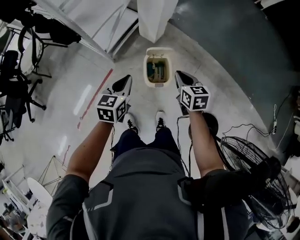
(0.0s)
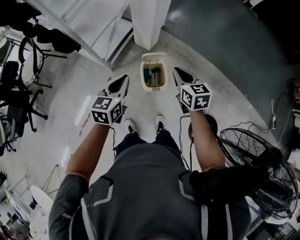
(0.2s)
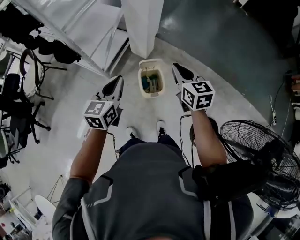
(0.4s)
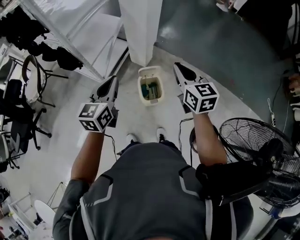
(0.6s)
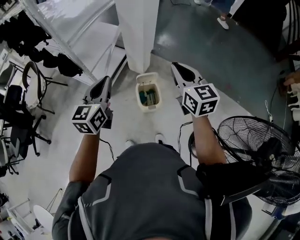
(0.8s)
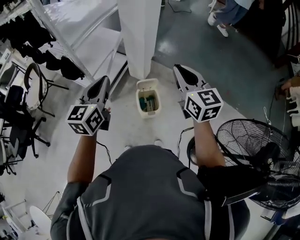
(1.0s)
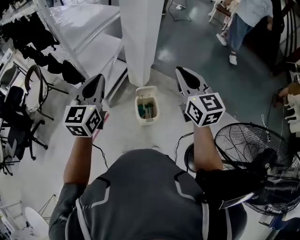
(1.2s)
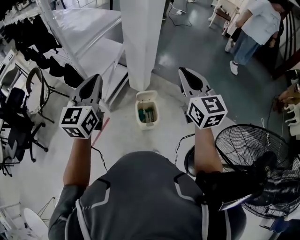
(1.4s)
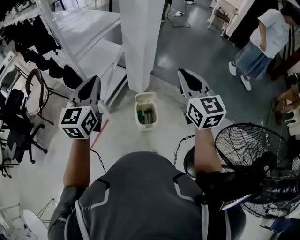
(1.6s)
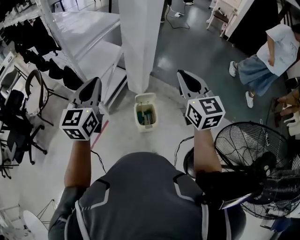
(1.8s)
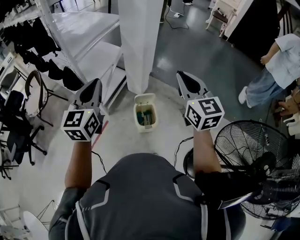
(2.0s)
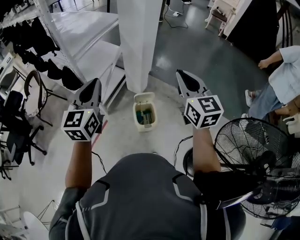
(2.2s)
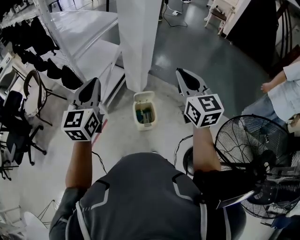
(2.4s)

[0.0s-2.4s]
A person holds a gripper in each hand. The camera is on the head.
0.0s to 1.2s: The two grippers go some 35 cm upward. The right gripper points its fingers roughly 30 degrees further upward, while the left gripper swivels approximately 30 degrees.
1.2s to 2.4s: There are only small adjustments of the grippers.

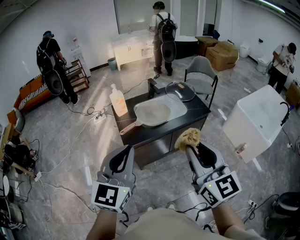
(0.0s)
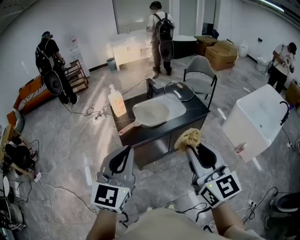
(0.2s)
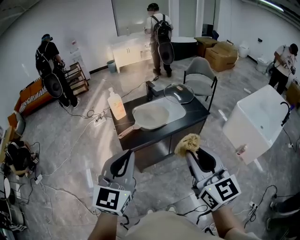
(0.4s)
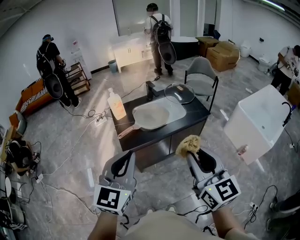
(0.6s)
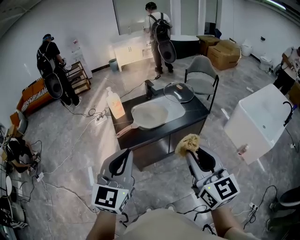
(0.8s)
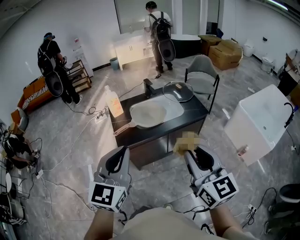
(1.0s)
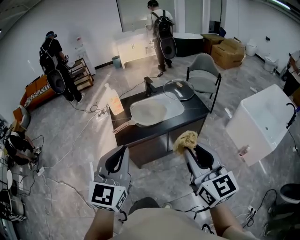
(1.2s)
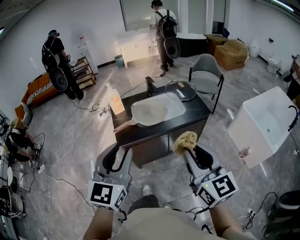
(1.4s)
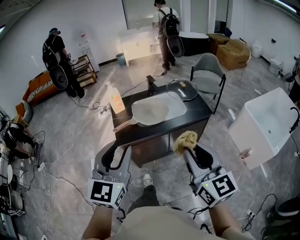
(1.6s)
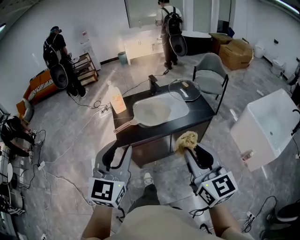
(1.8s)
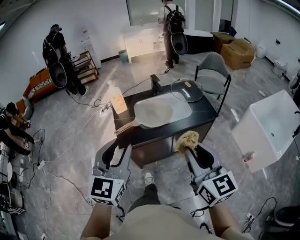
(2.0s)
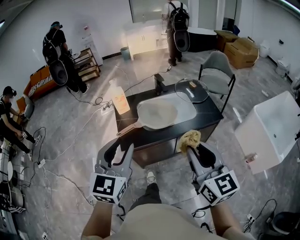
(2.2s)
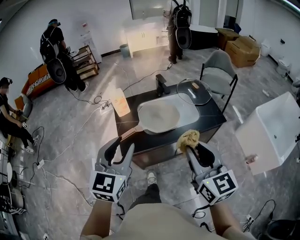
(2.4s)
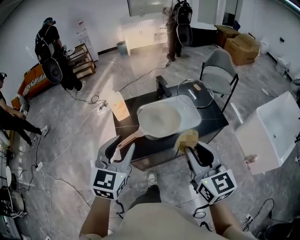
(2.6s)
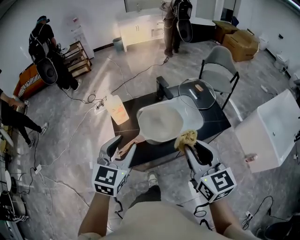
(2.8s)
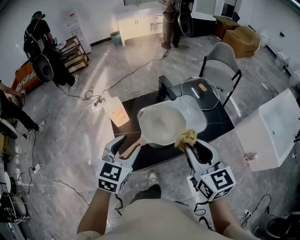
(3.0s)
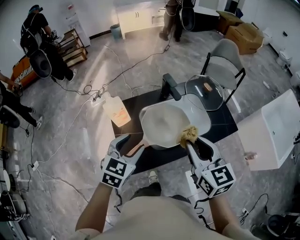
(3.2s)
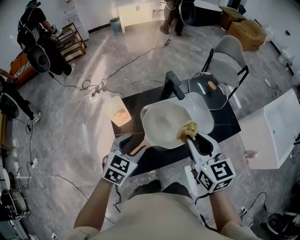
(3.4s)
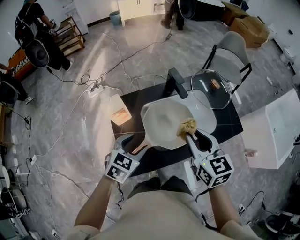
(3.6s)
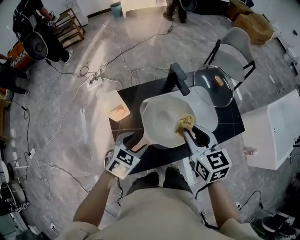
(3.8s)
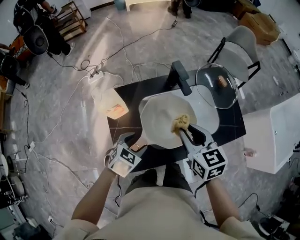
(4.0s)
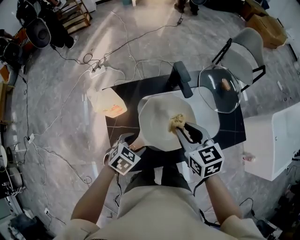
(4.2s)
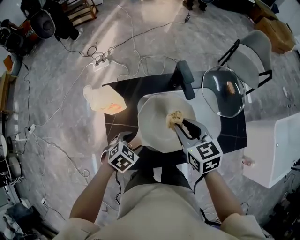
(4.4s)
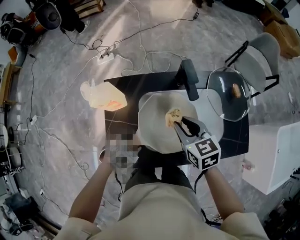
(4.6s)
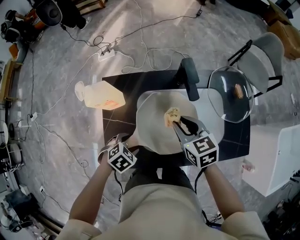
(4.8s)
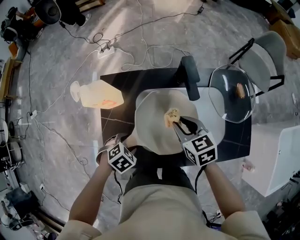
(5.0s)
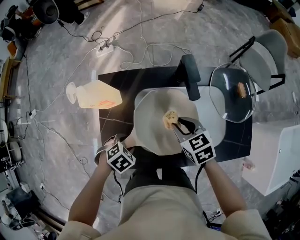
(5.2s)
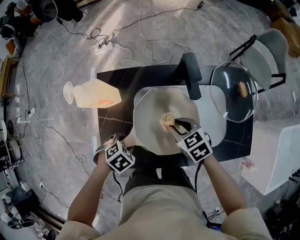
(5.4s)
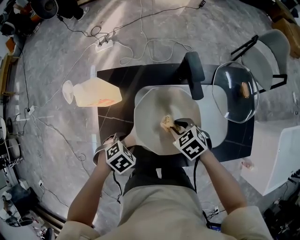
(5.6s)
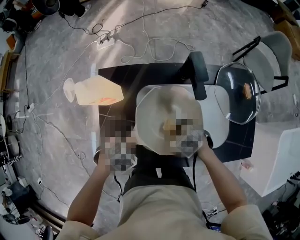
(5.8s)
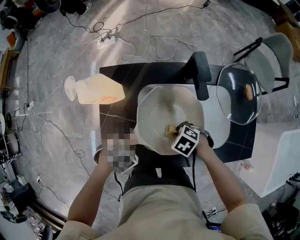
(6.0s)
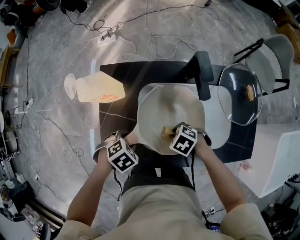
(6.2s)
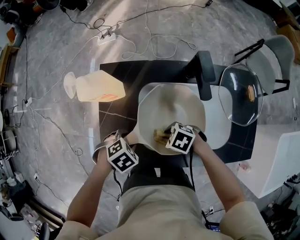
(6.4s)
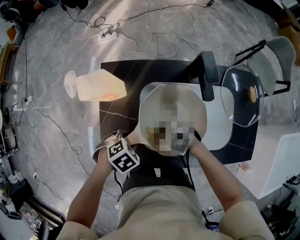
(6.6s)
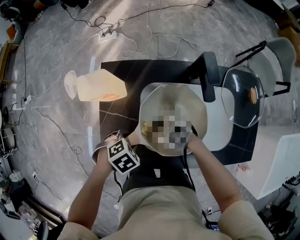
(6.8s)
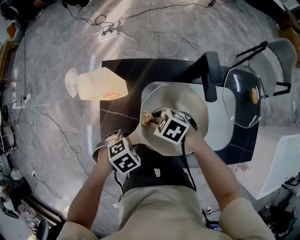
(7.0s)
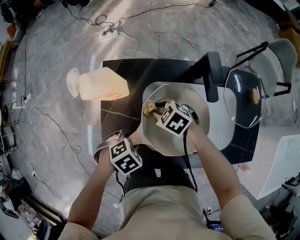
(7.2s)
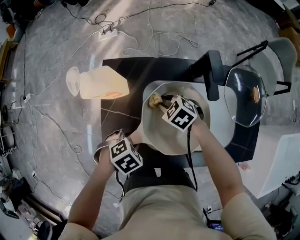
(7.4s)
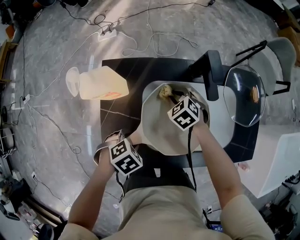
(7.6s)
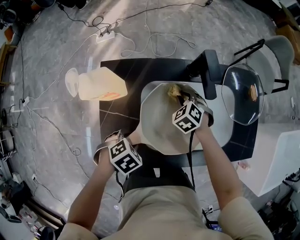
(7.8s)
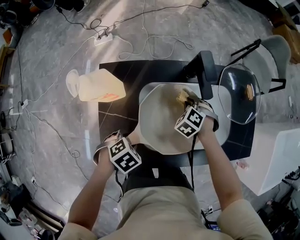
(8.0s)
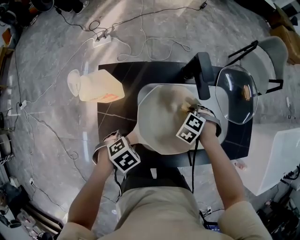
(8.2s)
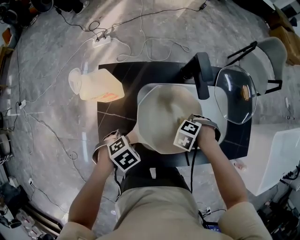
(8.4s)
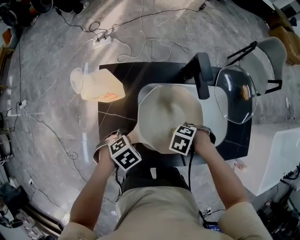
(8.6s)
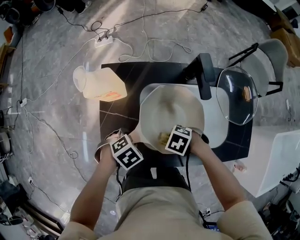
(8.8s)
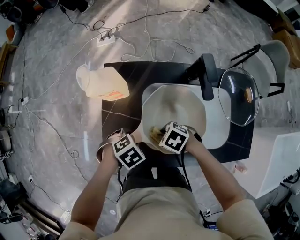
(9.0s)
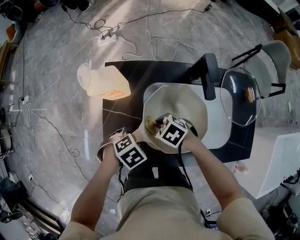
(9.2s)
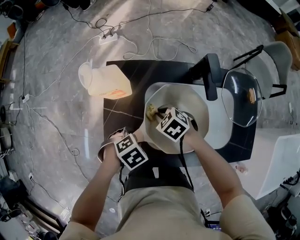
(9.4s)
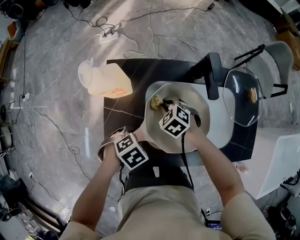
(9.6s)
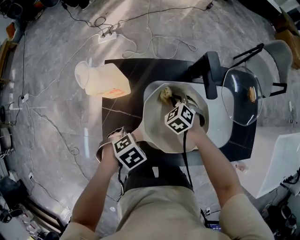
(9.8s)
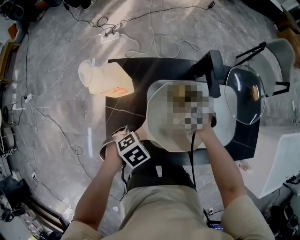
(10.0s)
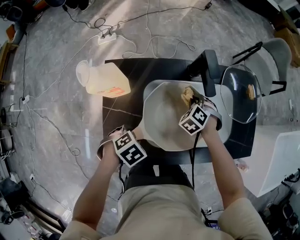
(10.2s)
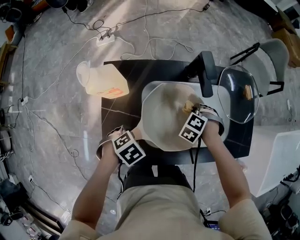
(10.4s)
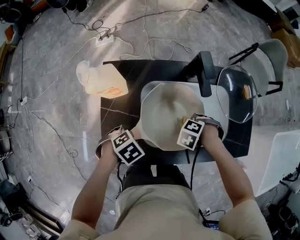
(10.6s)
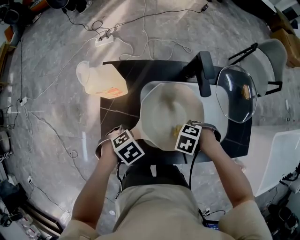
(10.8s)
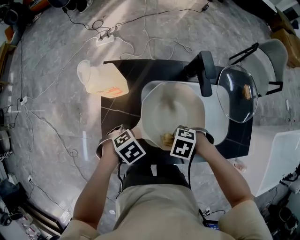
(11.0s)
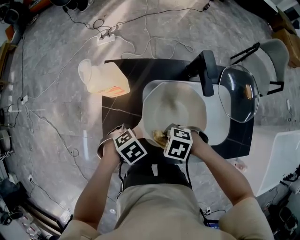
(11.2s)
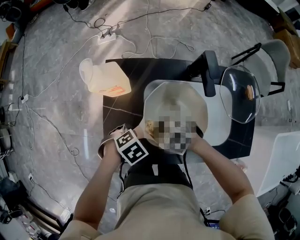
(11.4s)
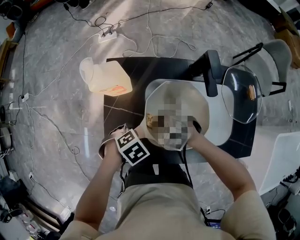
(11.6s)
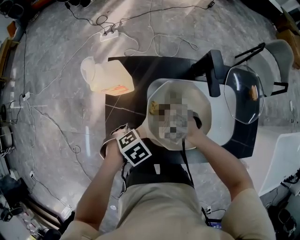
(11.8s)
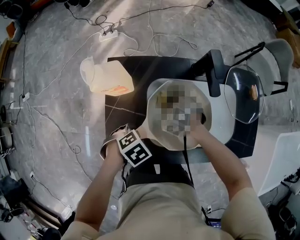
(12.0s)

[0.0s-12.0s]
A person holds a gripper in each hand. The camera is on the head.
0.0s to 1.6s: The left gripper heads to the right, covering approximately 5 cm, and opens. Meanwhile the right gripper moves to the right and downward, approximately 10 cm.
1.6s to 3.0s: The left gripper heads forward and downward, covering some 35 cm, and rotates approximately 30 degrees, while the right gripper goes roughly 30 cm forward.
3.0s to 4.4s: The left gripper heads downward, covering roughly 30 cm, and tips its fingers downward by approximately 40 degrees. The right gripper is displaced forward and downward by about 30 cm, and changes its angle by approximately 30 degrees.
4.4s to 6.0s: The right gripper heads downward, covering roughly 25 cm, and angles its fingers downward, by roughly 40 degrees. Meanwhile the left gripper heads downward, covering about 5 cm.
6.0s to 7.6s: The right gripper shifts by approximately 15 cm, and rotates some 30 degrees.
7.6s to 9.0s: The right gripper ends up about 20 cm from where it was, and swivels approximately 30 degrees.
9.0s to 10.4s: The right gripper moves some 20 cm, and turns by some 50 degrees.
10.4s to 12.0s: The right gripper ends up roughly 15 cm from where it was, and rotates approximately 20 degrees.

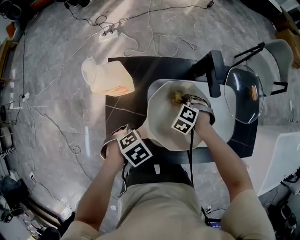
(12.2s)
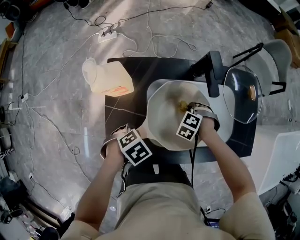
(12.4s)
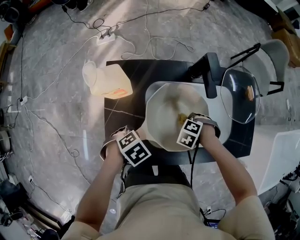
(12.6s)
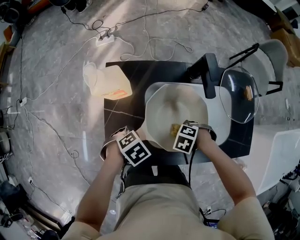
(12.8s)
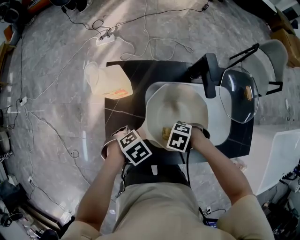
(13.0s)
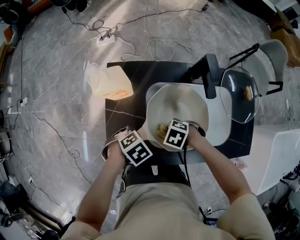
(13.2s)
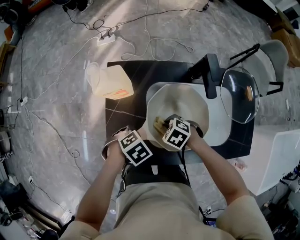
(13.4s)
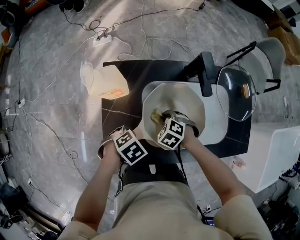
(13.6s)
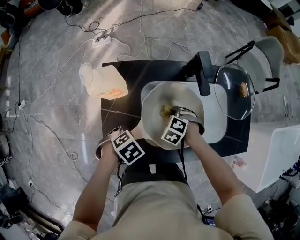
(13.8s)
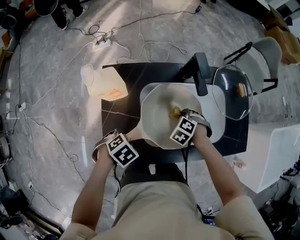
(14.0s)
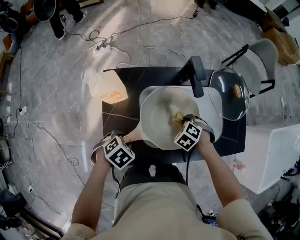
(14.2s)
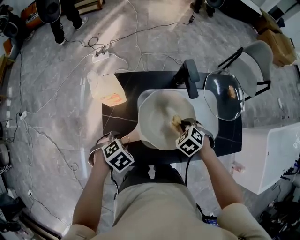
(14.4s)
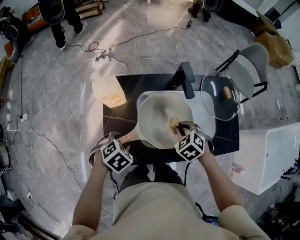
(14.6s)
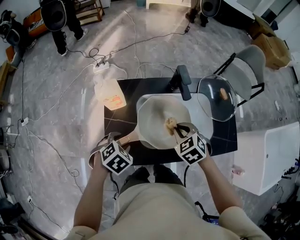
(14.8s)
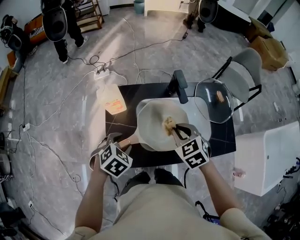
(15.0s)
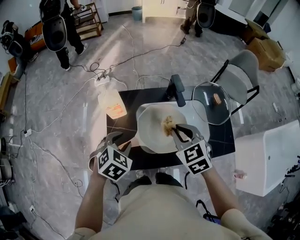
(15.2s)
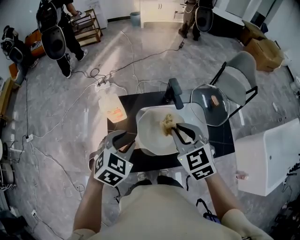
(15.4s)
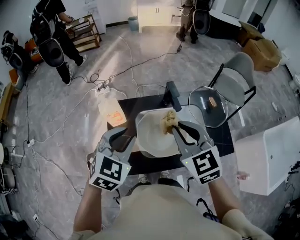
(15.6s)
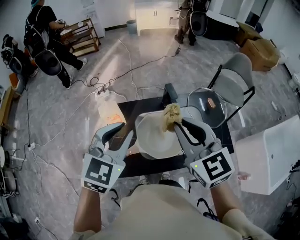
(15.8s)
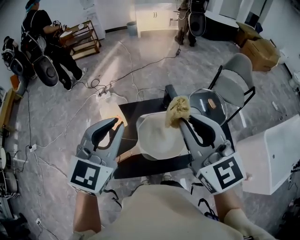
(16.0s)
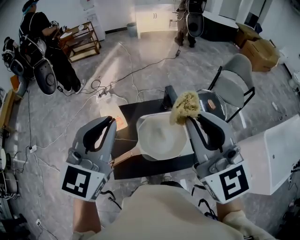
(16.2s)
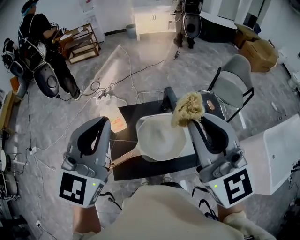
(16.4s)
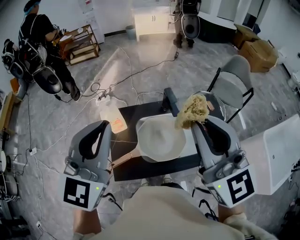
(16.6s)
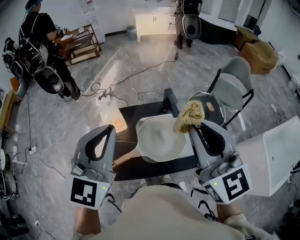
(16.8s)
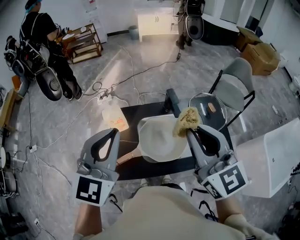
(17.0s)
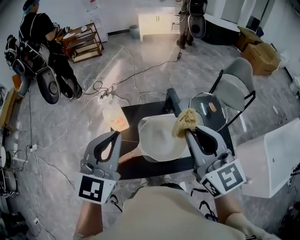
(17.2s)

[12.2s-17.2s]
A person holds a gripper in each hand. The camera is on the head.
13.8s to 15.6s: The two grippers go approximately 40 cm upward. The left gripper tips its fingers upward by roughly 40 degrees, while the right gripper points its fingers approximately 50 degrees further upward.
15.6s to 17.2s: The grippers both shift upward by approximately 10 cm. The left gripper rotates approximately 30 degrees, and closes up. Meanwhile the right gripper swivels approximately 20 degrees.

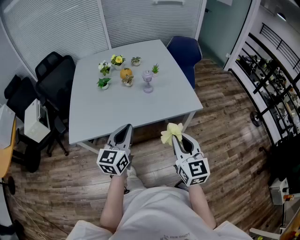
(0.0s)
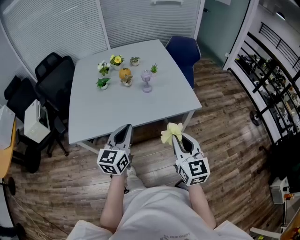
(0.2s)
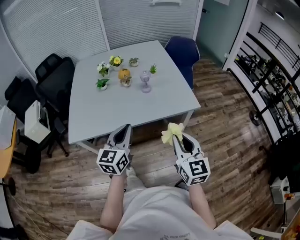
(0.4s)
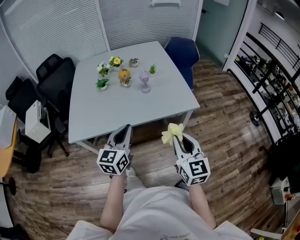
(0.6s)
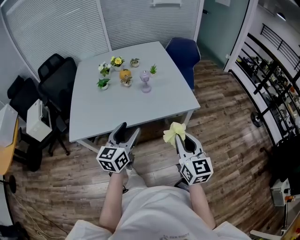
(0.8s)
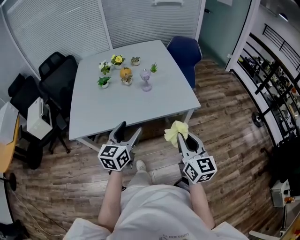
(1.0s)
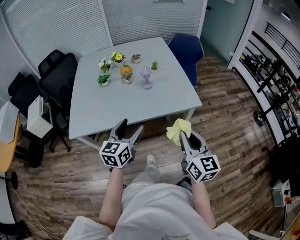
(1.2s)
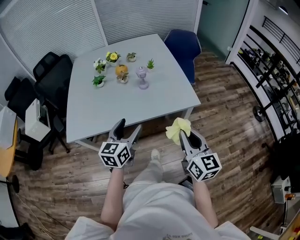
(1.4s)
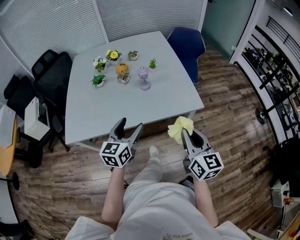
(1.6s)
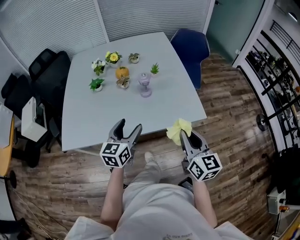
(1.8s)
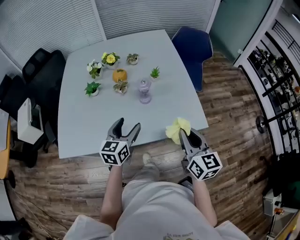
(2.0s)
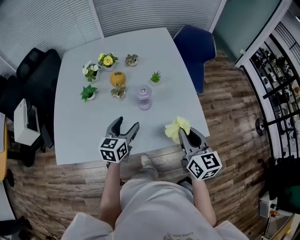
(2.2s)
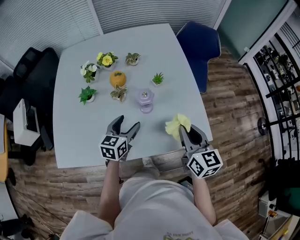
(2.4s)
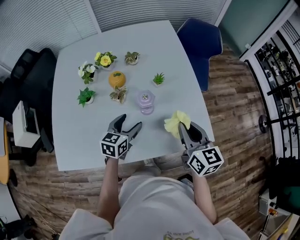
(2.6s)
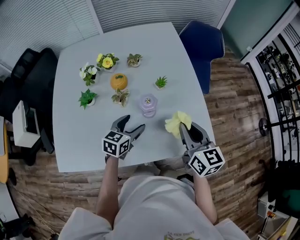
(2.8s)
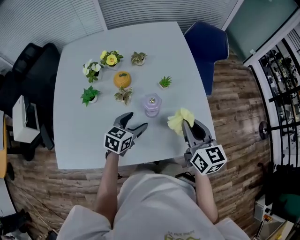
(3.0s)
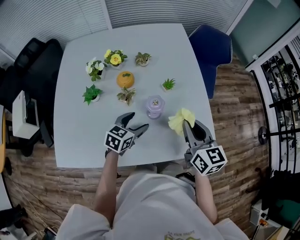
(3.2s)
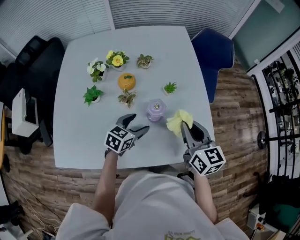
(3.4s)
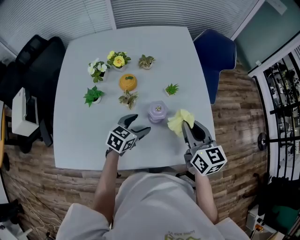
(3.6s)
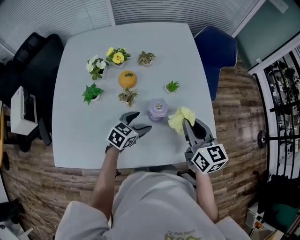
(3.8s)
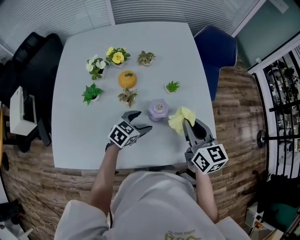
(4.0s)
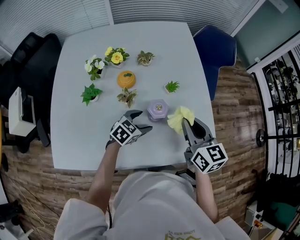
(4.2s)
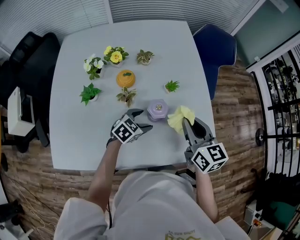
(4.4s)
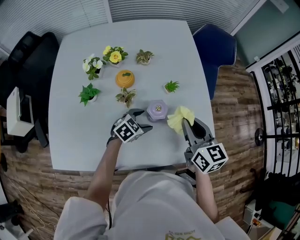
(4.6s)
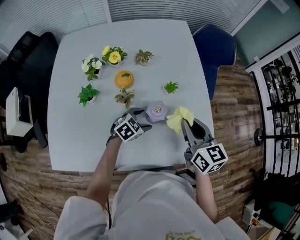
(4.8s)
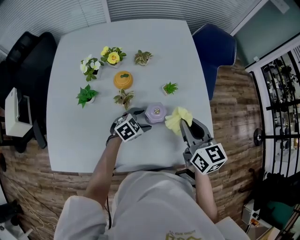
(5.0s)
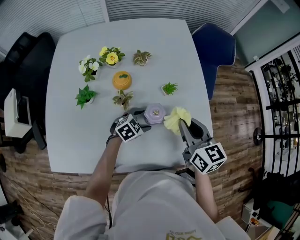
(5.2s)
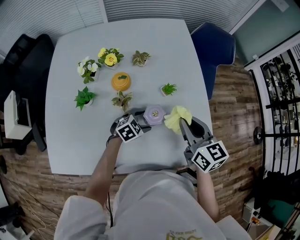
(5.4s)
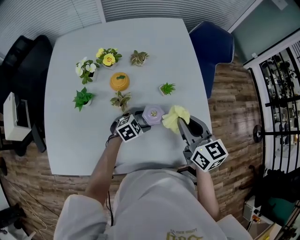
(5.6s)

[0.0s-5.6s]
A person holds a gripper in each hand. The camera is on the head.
0.0s to 1.4s: Both grippers move to the right, about 5 cm. The left gripper opens up.
1.4s to 2.8s: The left gripper is displaced forward and downward by approximately 35 cm, and rotates about 20 degrees. Meanwhile the right gripper moves forward, approximately 40 cm.
2.8s to 4.2s: The right gripper goes some 5 cm forward; the left gripper travels downward by approximately 5 cm, and swivels some 20 degrees.
4.2s to 5.6s: The left gripper travels downward by roughly 5 cm.
